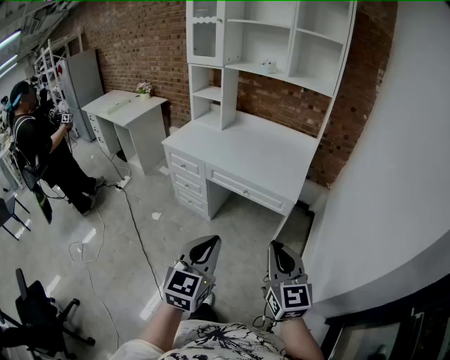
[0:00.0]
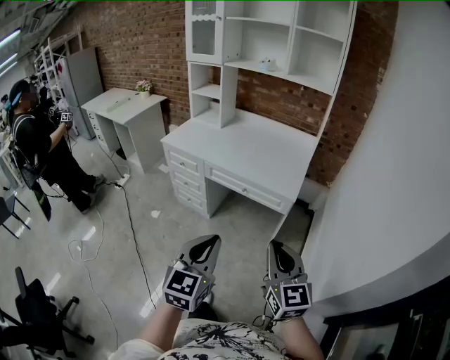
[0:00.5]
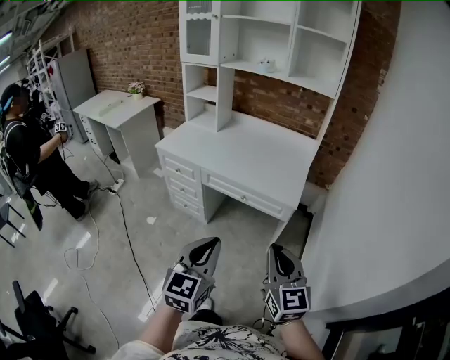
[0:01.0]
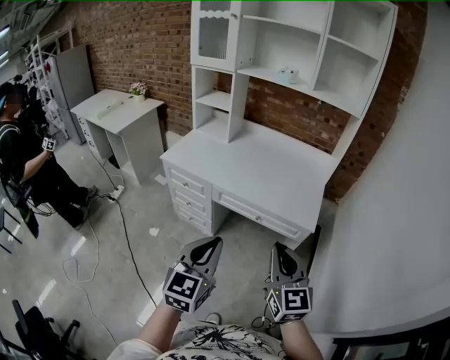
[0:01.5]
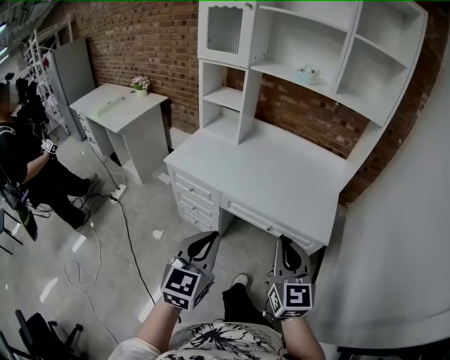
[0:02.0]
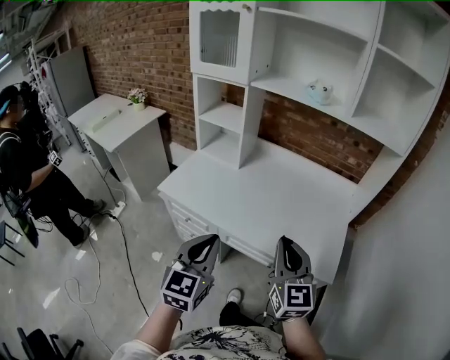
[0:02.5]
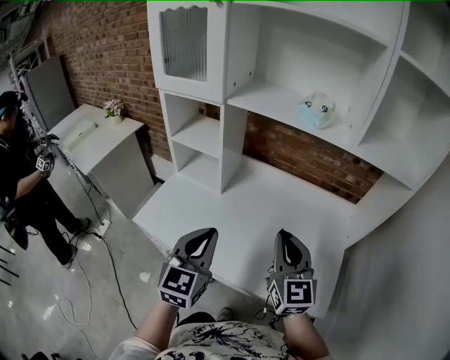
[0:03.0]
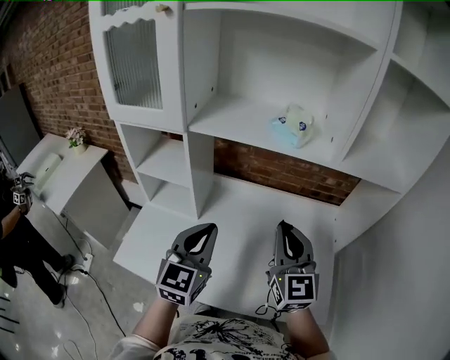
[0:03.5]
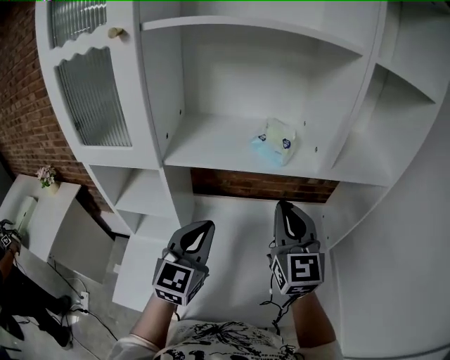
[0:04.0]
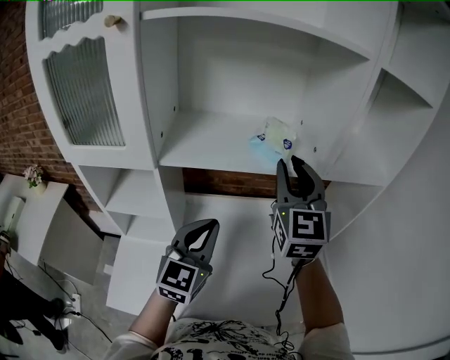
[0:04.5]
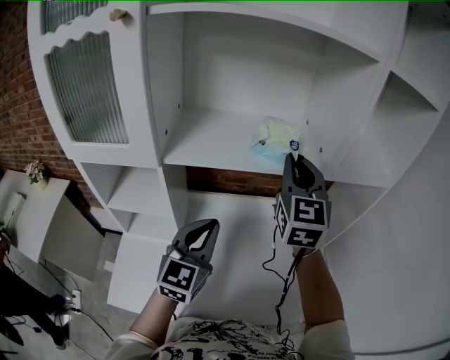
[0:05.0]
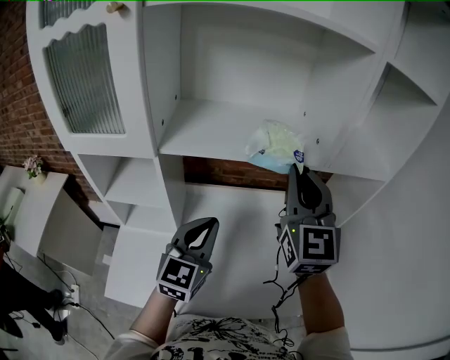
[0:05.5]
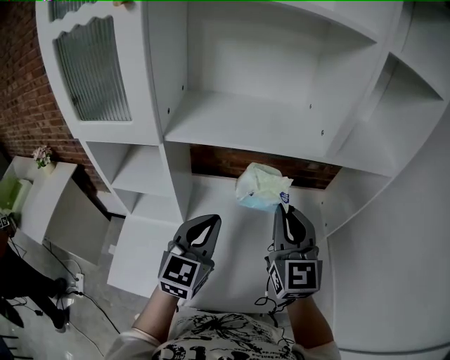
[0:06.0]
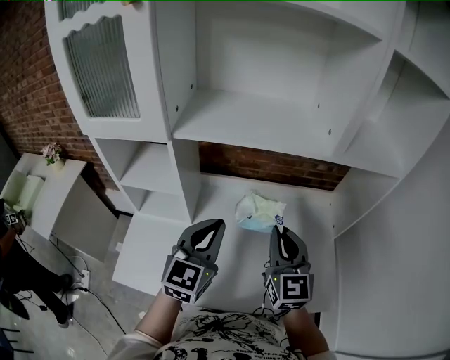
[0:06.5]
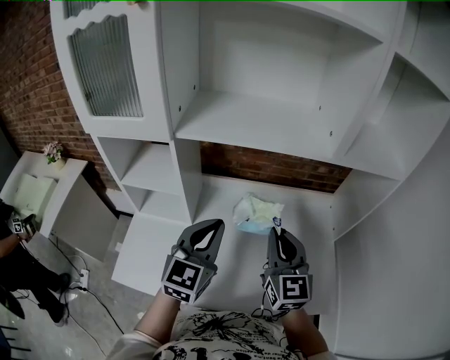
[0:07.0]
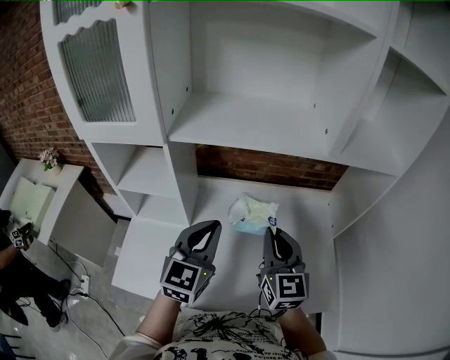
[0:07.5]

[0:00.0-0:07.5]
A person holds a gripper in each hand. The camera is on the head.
0:00.0 to 0:02.0: Both grippers travel together forward and to the left, approximately 30 cm.
0:02.0 to 0:04.0: The two grippers travel together, forward, roughly 60 cm. The right gripper turns by approximately 20 degrees, while the left gripper swivels roughly 30 degrees.
0:04.0 to 0:05.5: The right gripper moves upward, roughly 5 cm, and moves roughly 10 cm forward and comes back.
0:05.5 to 0:07.5: The right gripper moves downward, some 20 cm.

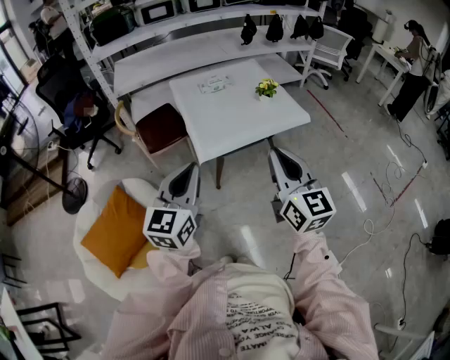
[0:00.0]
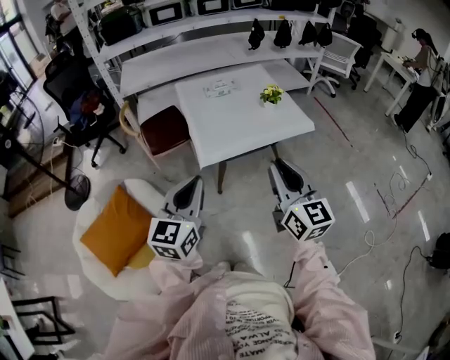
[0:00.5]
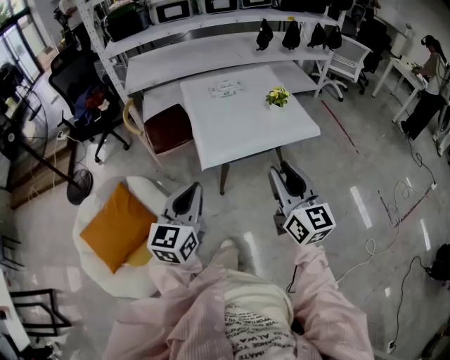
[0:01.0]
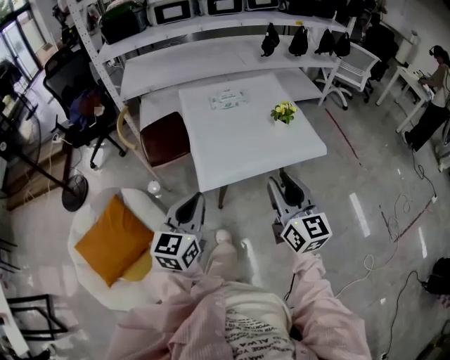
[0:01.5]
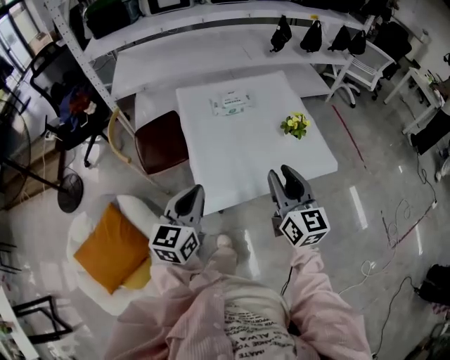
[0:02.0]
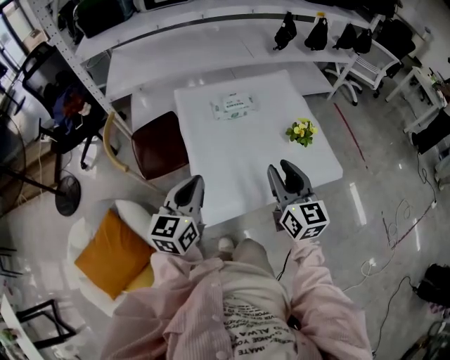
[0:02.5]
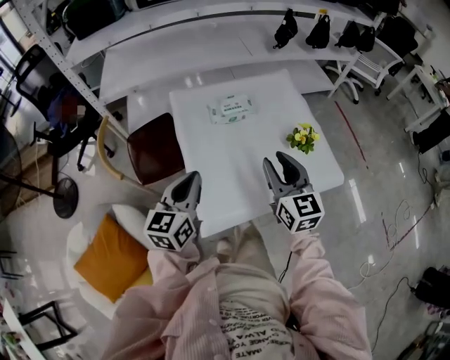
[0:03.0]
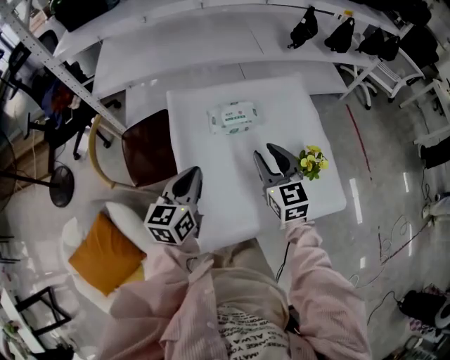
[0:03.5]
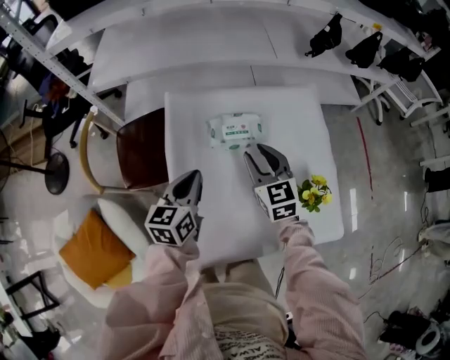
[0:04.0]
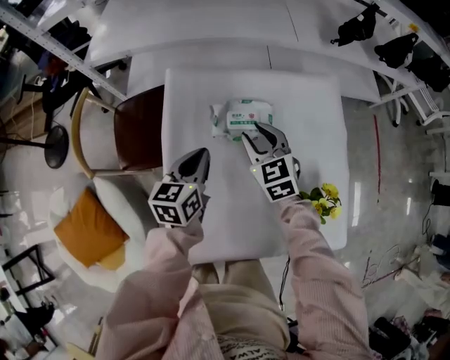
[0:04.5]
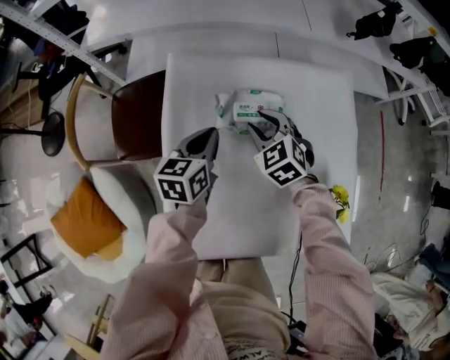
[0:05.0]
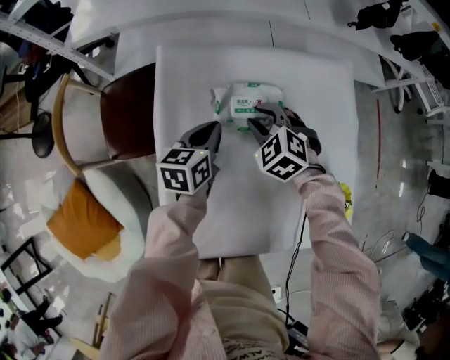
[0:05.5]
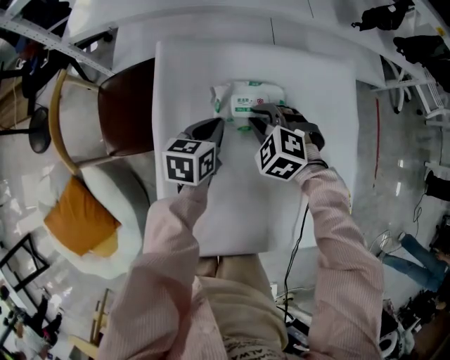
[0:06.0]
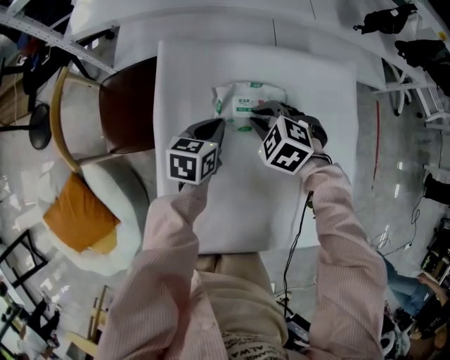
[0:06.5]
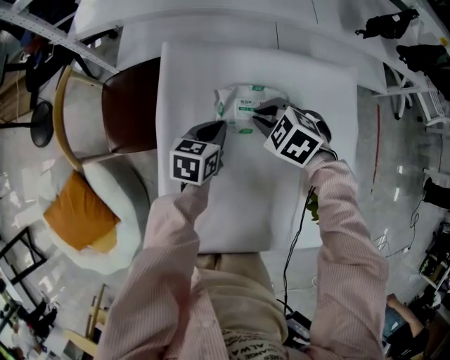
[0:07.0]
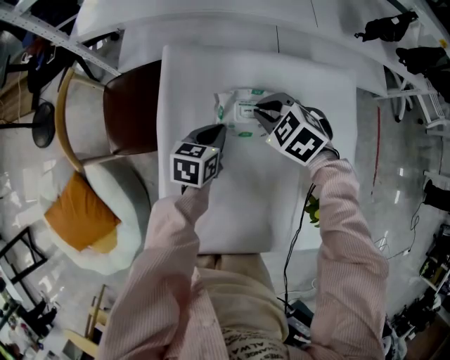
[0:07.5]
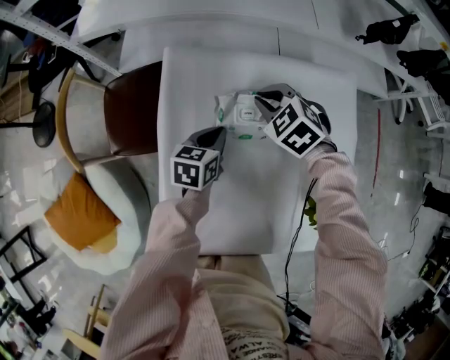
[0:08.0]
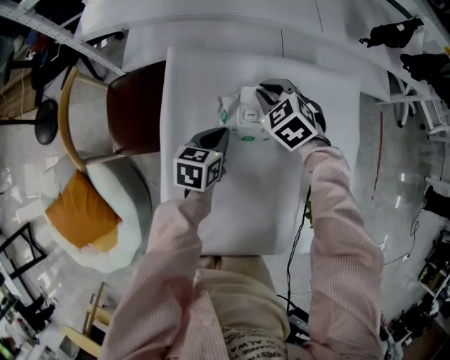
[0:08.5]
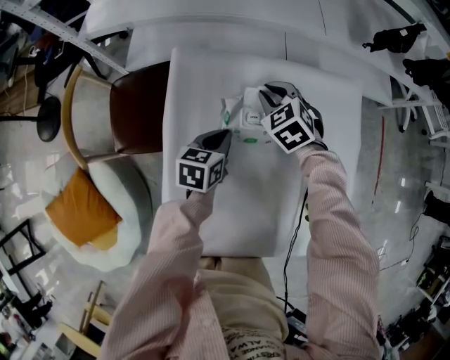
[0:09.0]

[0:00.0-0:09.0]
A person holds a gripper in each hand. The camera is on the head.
0:00.0 to 0:02.0: The two grippers go some 30 cm forward. The right gripper opens up.
0:02.0 to 0:04.5: The grippers both shift forward and downward by some 50 cm. The left gripper turns by roughly 20 degrees. Meanwhile the right gripper changes its angle by some 40 degrees.
0:04.5 to 0:07.0: The right gripper moves downward, about 5 cm, and angles its fingers downward, by some 30 degrees. Meanwhile the left gripper heads downward and forward, covering roughly 10 cm.
0:07.0 to 0:09.0: The right gripper travels forward by roughly 10 cm, and changes its angle by roughly 20 degrees.

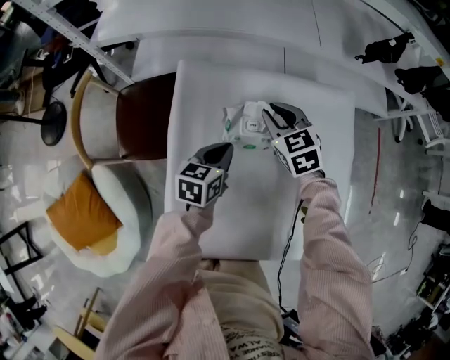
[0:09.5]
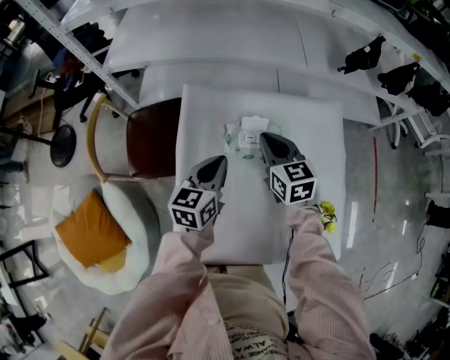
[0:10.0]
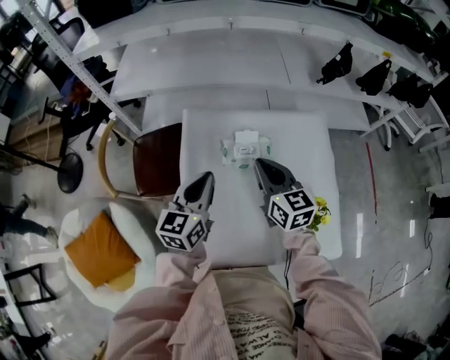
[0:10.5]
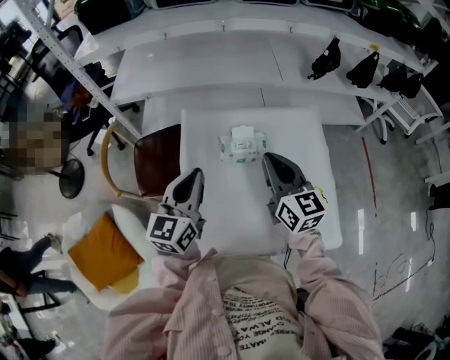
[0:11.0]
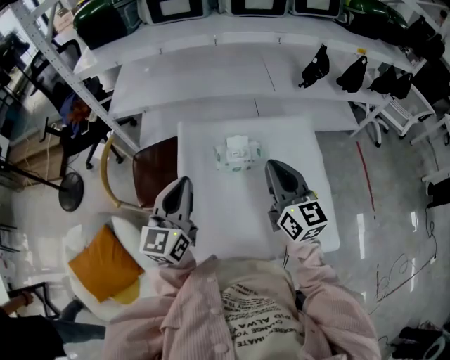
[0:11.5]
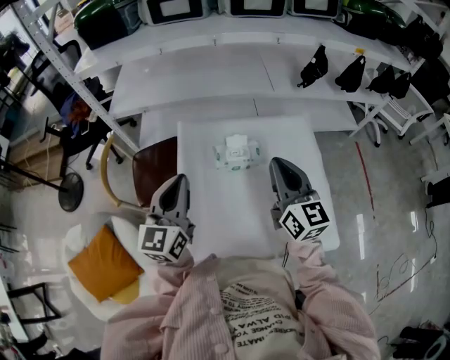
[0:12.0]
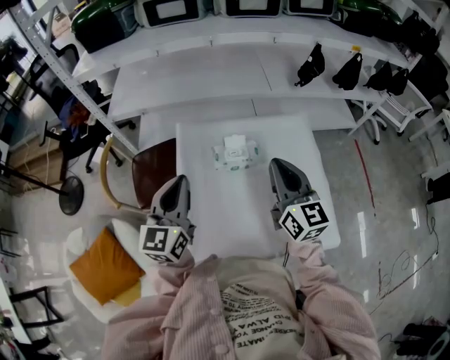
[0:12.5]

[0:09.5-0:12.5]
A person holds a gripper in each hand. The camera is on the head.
0:09.5 to 0:11.0: The right gripper shifts approximately 25 cm upward and backward, and tips its fingers upward by roughly 30 degrees, while the left gripper moves upward, approximately 25 cm, and swivels roughly 30 degrees.
0:11.0 to 0:12.5: The right gripper shifts by some 5 cm.

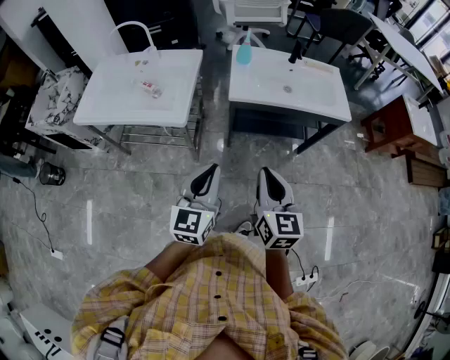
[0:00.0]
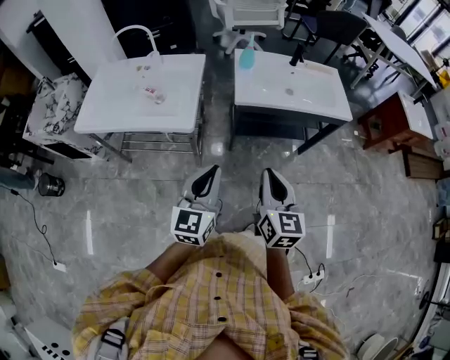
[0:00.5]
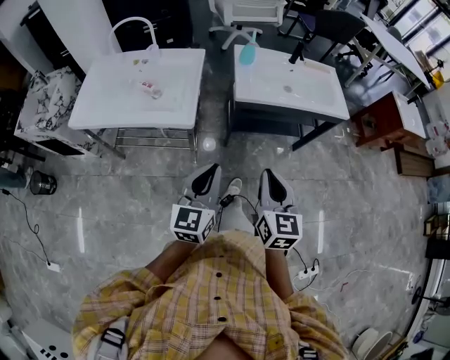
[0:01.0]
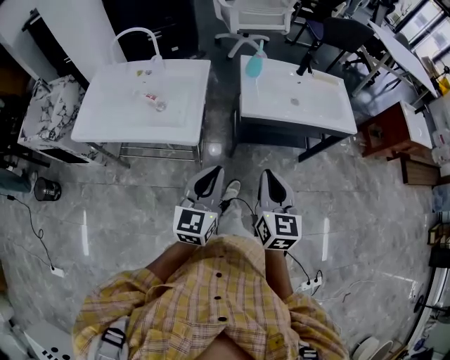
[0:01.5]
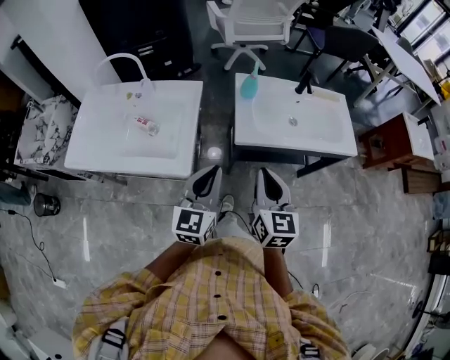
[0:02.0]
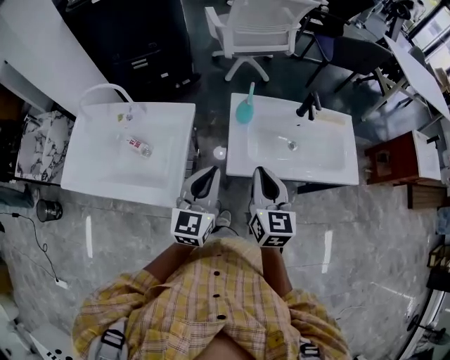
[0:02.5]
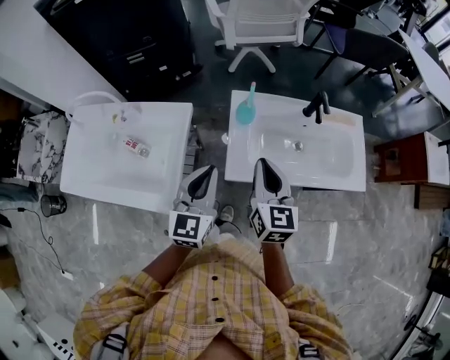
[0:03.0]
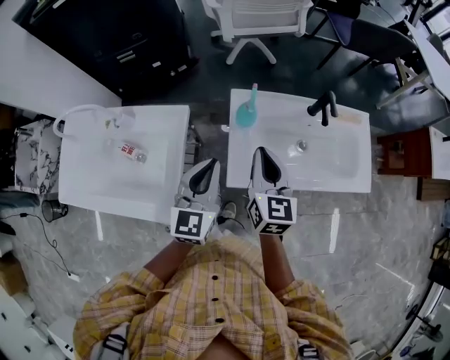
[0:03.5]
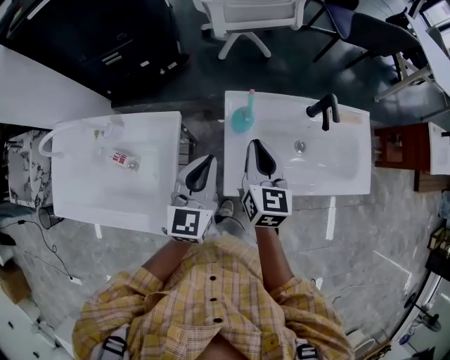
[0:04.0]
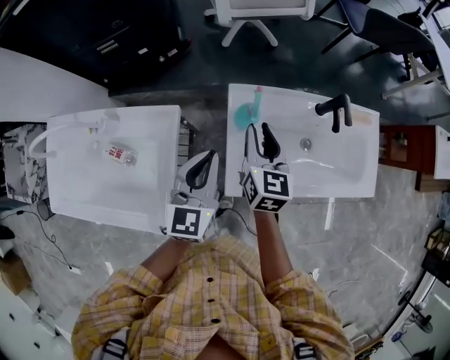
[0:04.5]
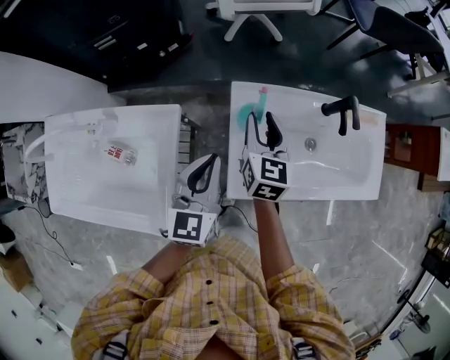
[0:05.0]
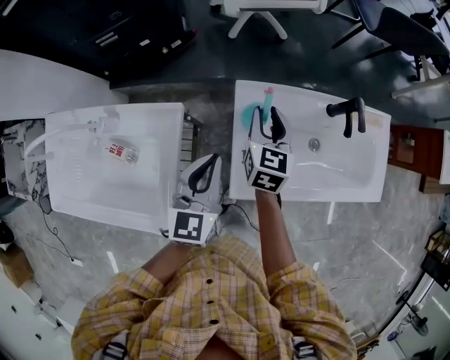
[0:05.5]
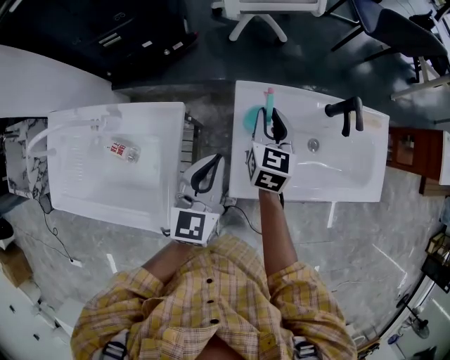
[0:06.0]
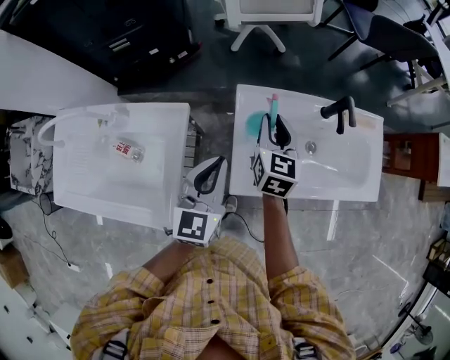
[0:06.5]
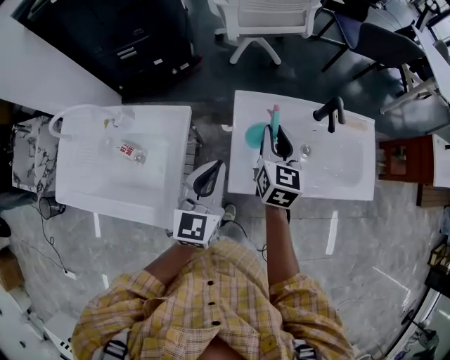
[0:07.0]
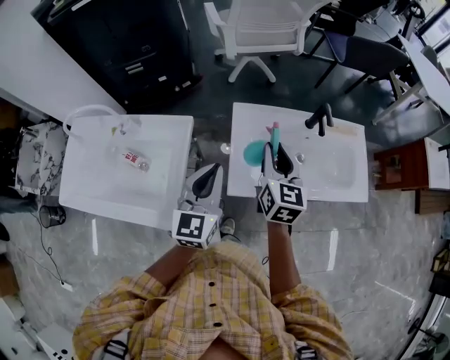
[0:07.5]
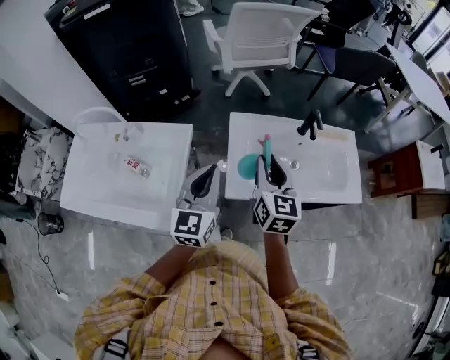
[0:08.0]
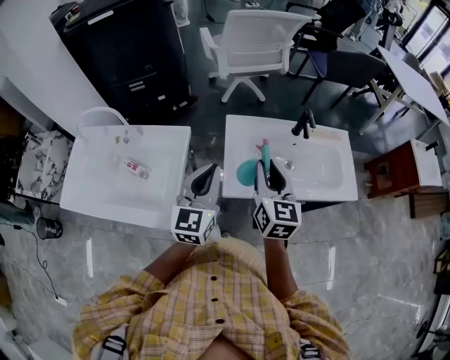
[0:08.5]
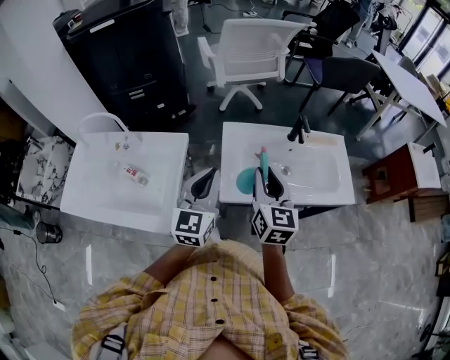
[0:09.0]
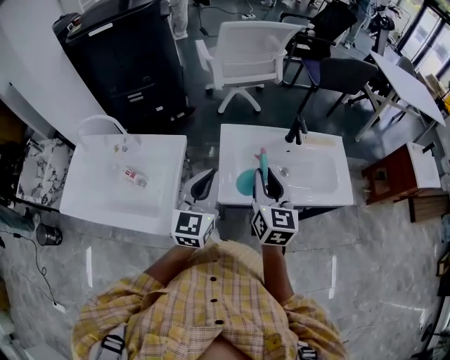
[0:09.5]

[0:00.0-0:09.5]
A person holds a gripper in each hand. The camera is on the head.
0:00.0 to 0:02.0: Both grippers move forward and to the left, about 20 cm.
0:02.0 to 0:04.0: Both grippers move forward, approximately 35 cm.
0:04.0 to 0:05.5: The right gripper goes about 15 cm forward and downward, and opens; the left gripper shifts some 5 cm downward.
0:05.5 to 0:07.5: The grippers both shift backward and upward by about 15 cm.
0:07.5 to 0:09.5: The right gripper goes approximately 10 cm backward and upward, while the left gripper shifts by approximately 5 cm.
